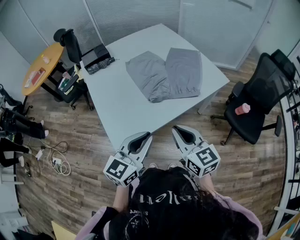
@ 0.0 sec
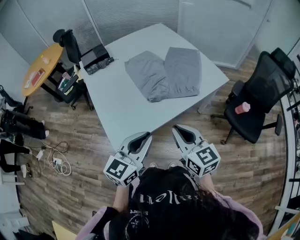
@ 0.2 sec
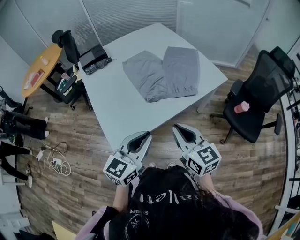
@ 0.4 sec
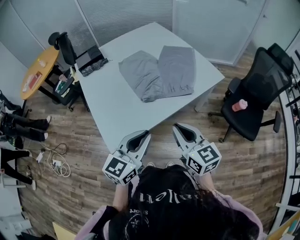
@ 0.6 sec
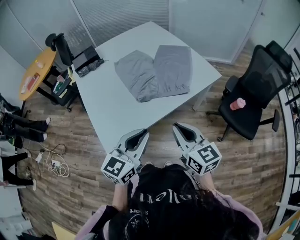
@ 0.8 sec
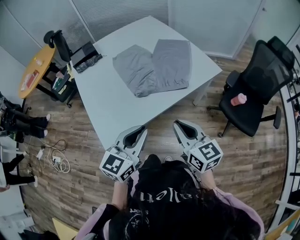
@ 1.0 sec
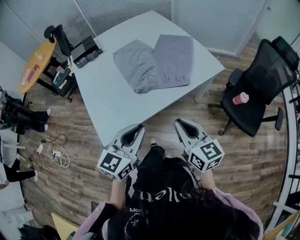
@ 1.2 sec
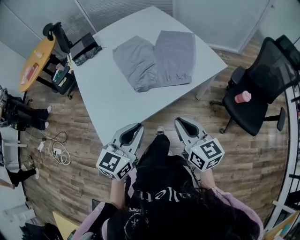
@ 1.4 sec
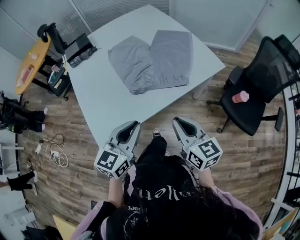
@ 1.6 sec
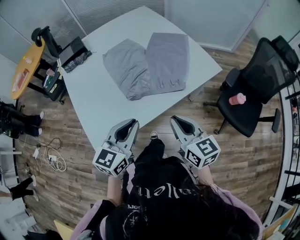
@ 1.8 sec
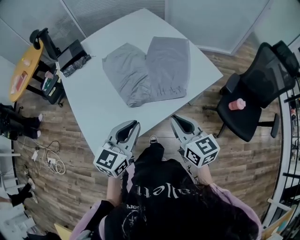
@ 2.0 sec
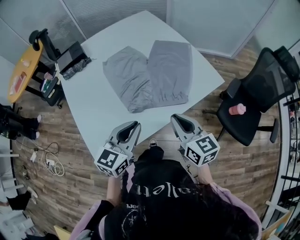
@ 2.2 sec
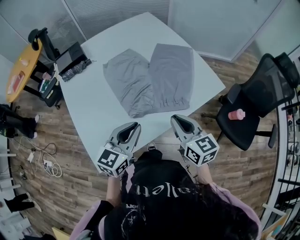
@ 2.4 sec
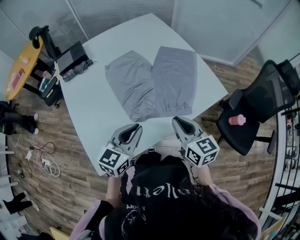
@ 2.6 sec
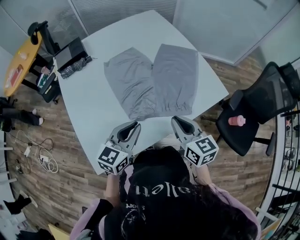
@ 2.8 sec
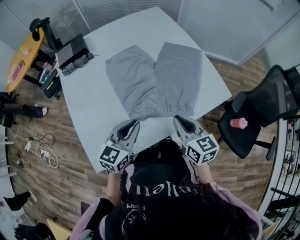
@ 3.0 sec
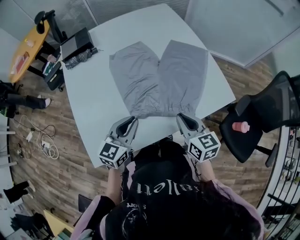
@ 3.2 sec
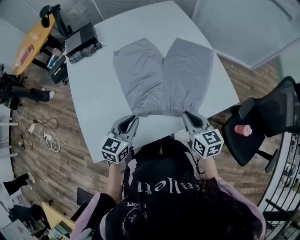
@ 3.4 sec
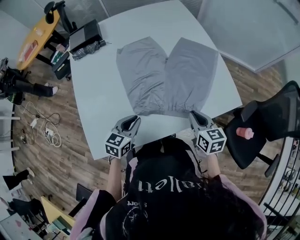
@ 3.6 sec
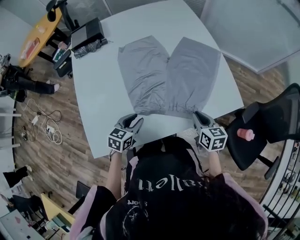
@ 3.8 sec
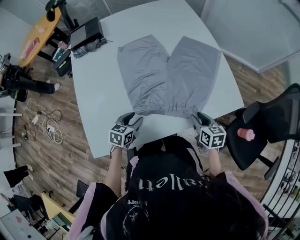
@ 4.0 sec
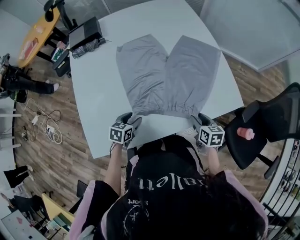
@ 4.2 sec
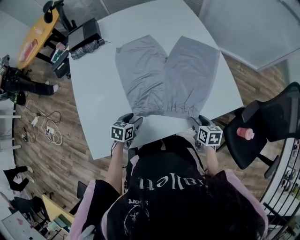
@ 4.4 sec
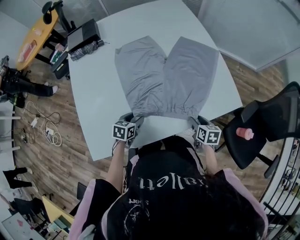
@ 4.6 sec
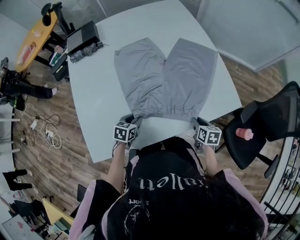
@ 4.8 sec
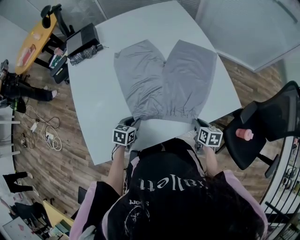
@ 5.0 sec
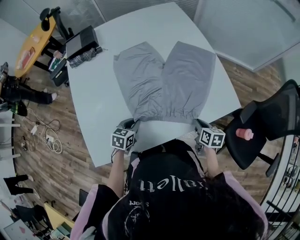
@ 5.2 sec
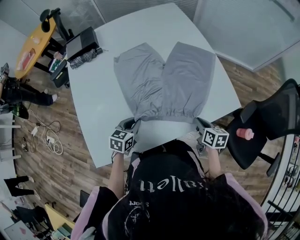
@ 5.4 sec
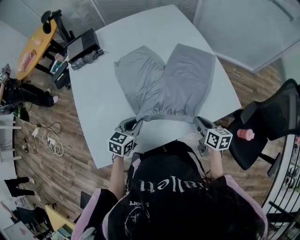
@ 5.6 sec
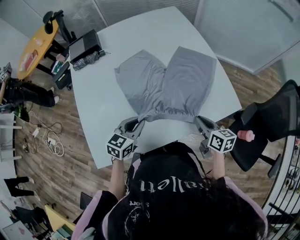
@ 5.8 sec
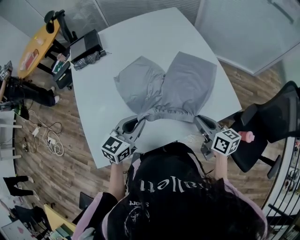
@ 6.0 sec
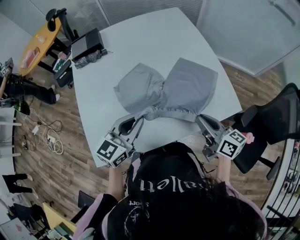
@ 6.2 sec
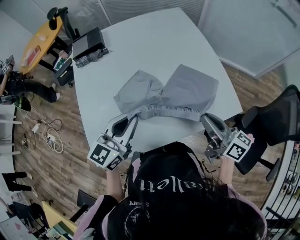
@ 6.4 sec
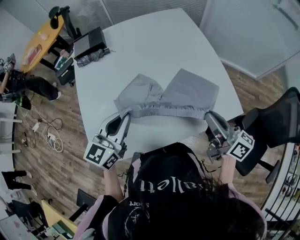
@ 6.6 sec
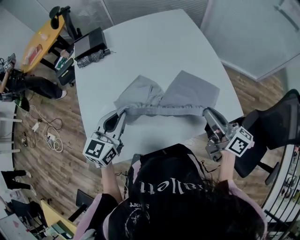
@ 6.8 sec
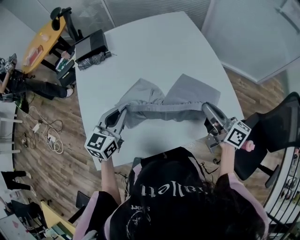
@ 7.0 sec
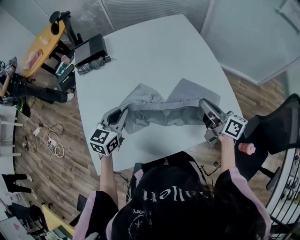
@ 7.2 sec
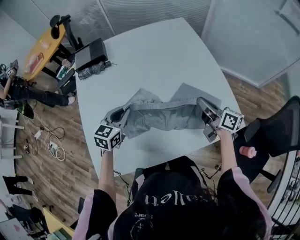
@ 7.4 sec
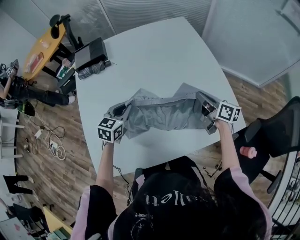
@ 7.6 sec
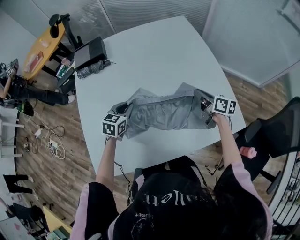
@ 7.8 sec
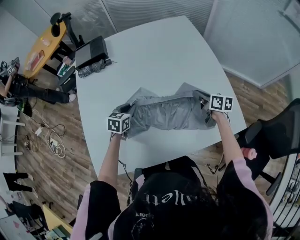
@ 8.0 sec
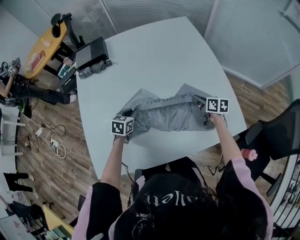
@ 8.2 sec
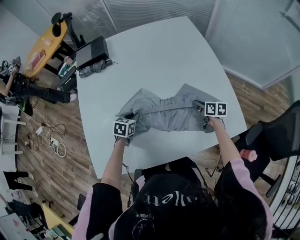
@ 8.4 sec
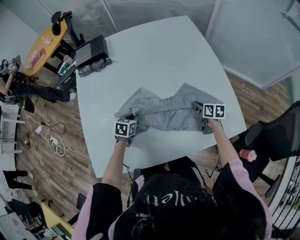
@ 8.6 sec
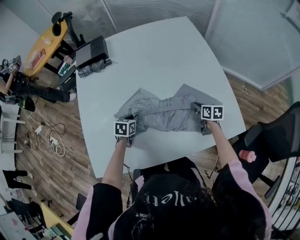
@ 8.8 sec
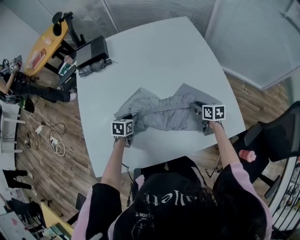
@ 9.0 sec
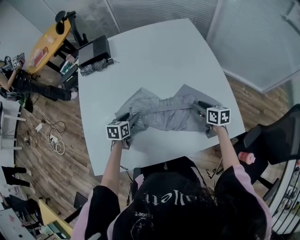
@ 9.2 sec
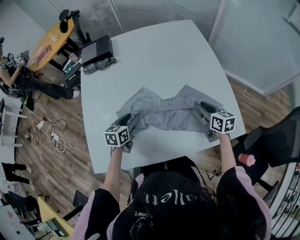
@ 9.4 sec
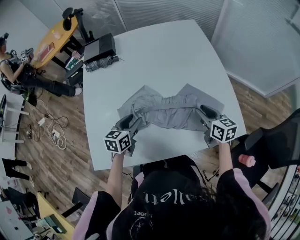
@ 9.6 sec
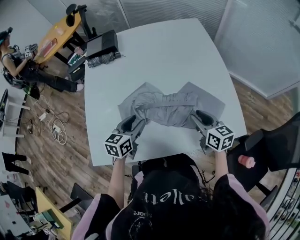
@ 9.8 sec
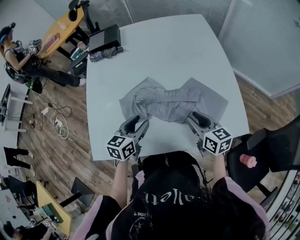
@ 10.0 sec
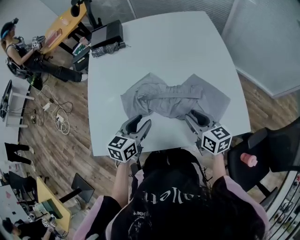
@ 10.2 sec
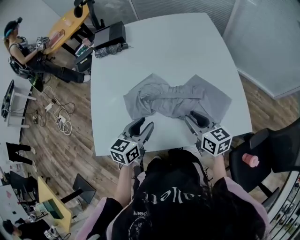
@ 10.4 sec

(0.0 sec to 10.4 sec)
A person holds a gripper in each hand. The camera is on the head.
0.0 sec - 1.4 sec: The left gripper shifts about 5 cm to the right. Meanwhile the right gripper travels to the right by some 10 cm.
1.4 sec - 3.0 sec: The grippers both shift forward by approximately 20 cm.
3.0 sec - 4.4 sec: The right gripper travels downward and to the right by roughly 25 cm, rotates approximately 30 degrees, and opens up. The left gripper is displaced downward by approximately 20 cm, points its fingers roughly 30 degrees further downward, and opens.
4.4 sec - 6.0 sec: The grippers both shift upward by about 20 cm. The left gripper tilts its fingers about 30 degrees upward, and closes. The right gripper rotates roughly 30 degrees, and closes up.
6.0 sec - 7.4 sec: The right gripper heads forward, covering roughly 15 cm. The left gripper is displaced forward and to the left by some 15 cm.
7.4 sec - 9.0 sec: The grippers both shift downward by approximately 20 cm. The left gripper rotates some 30 degrees. Meanwhile the right gripper tips its fingers downward by approximately 40 degrees, and opens its fingers.
9.0 sec - 10.4 sec: The left gripper heads upward and backward, covering approximately 20 cm, changes its angle by approximately 30 degrees, and opens up; the right gripper heads upward, backward and to the left, covering roughly 20 cm, and changes its angle by roughly 30 degrees.

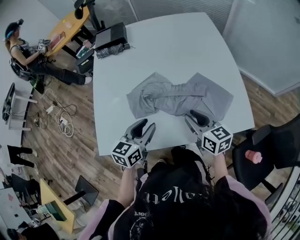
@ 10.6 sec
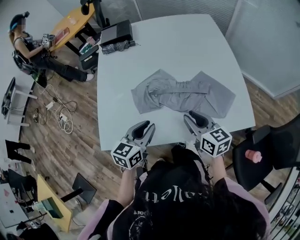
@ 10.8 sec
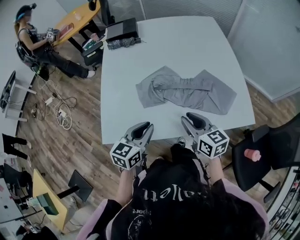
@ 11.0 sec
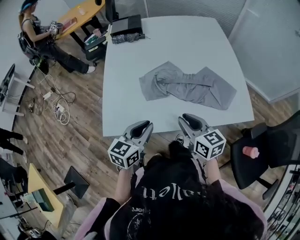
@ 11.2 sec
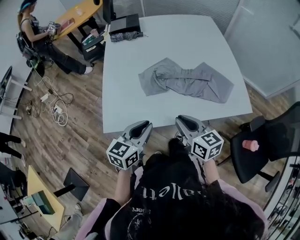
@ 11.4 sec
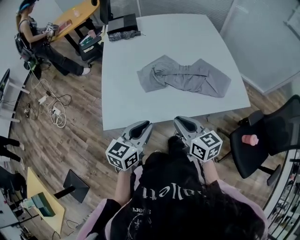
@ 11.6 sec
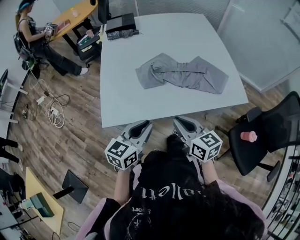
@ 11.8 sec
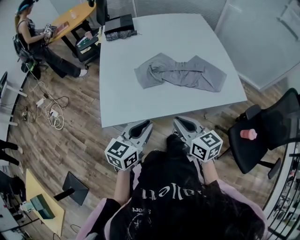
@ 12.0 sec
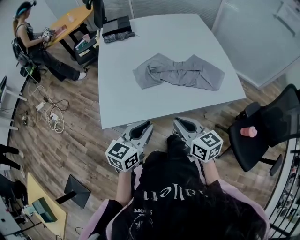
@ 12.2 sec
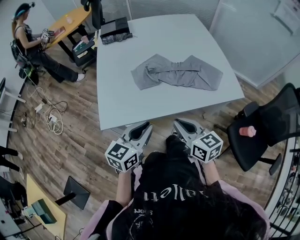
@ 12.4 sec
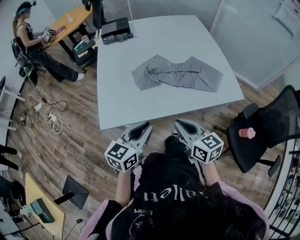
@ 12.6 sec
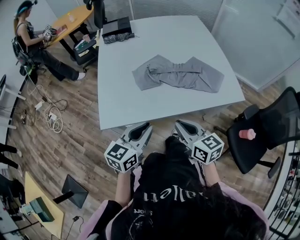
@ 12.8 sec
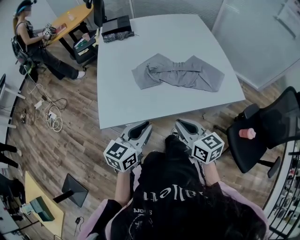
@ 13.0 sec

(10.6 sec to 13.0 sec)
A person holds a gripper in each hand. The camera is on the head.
10.6 sec - 11.8 sec: Both grippers travel together backward and to the left, about 20 cm. The right gripper closes up, while the left gripper closes up.
11.8 sec - 13.0 sec: There are only small adjustments of the grippers.

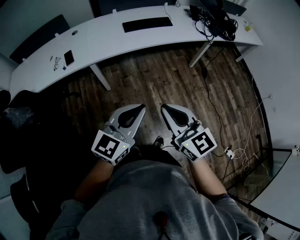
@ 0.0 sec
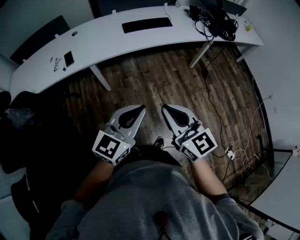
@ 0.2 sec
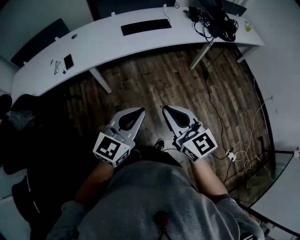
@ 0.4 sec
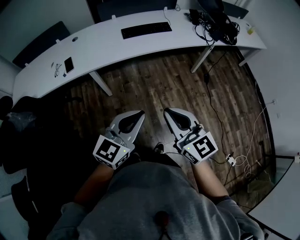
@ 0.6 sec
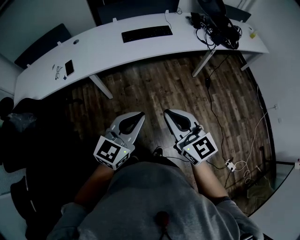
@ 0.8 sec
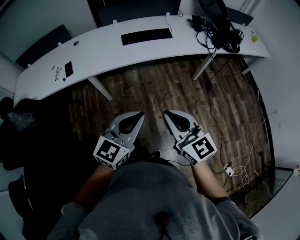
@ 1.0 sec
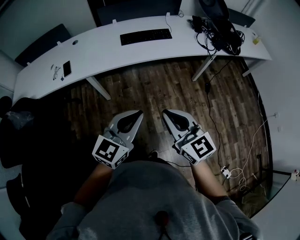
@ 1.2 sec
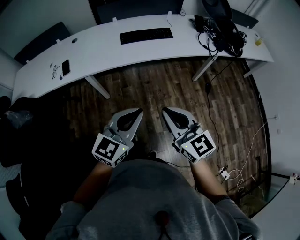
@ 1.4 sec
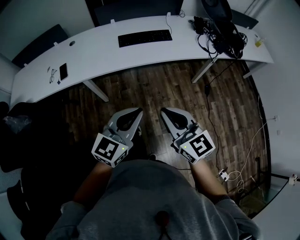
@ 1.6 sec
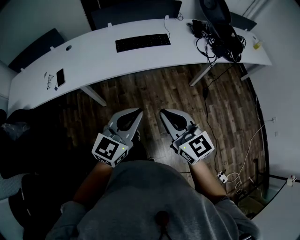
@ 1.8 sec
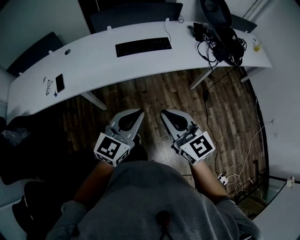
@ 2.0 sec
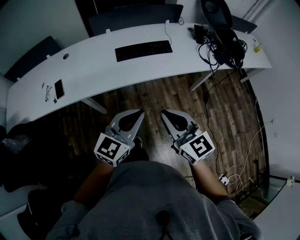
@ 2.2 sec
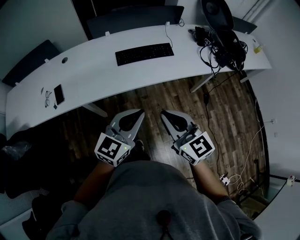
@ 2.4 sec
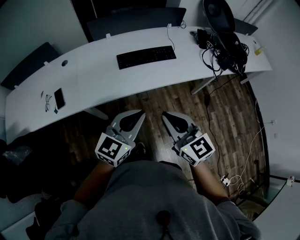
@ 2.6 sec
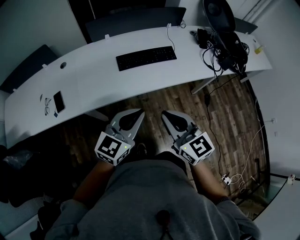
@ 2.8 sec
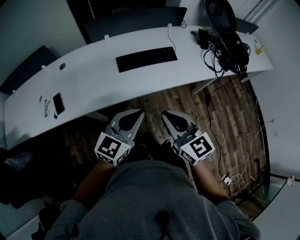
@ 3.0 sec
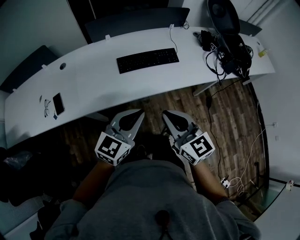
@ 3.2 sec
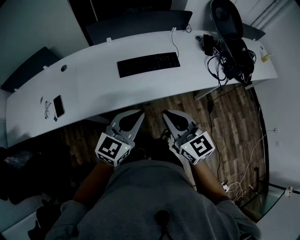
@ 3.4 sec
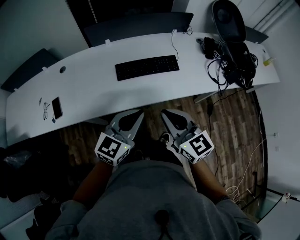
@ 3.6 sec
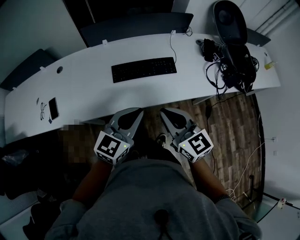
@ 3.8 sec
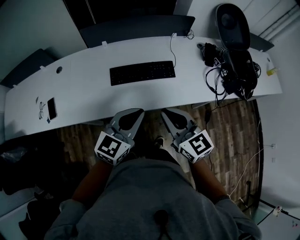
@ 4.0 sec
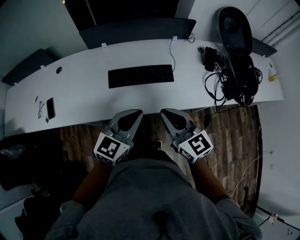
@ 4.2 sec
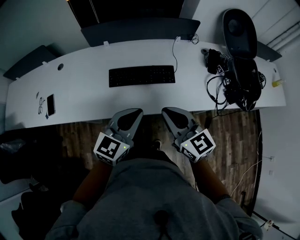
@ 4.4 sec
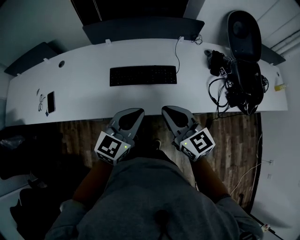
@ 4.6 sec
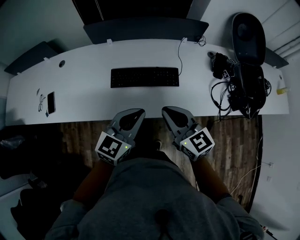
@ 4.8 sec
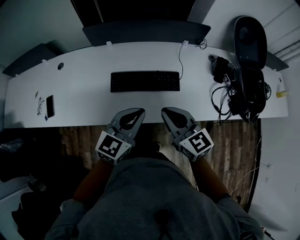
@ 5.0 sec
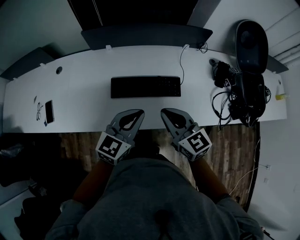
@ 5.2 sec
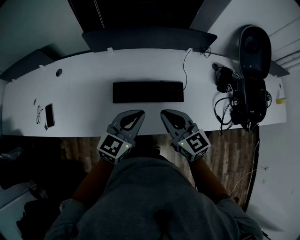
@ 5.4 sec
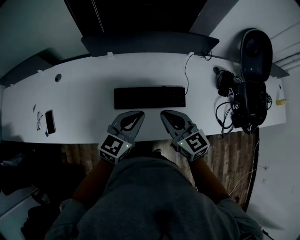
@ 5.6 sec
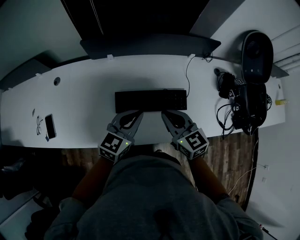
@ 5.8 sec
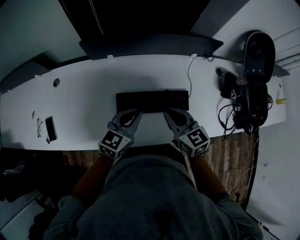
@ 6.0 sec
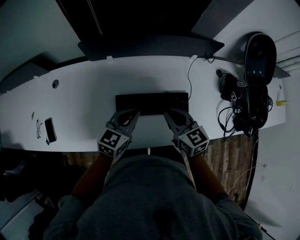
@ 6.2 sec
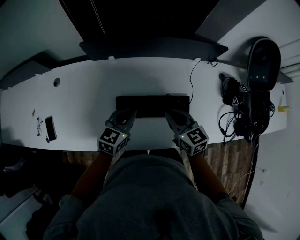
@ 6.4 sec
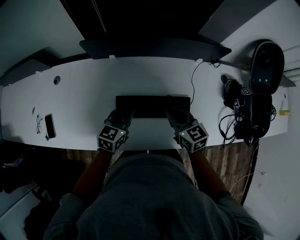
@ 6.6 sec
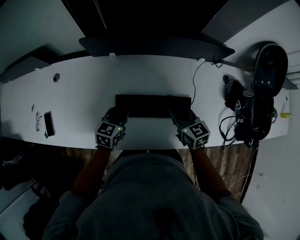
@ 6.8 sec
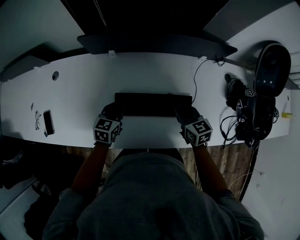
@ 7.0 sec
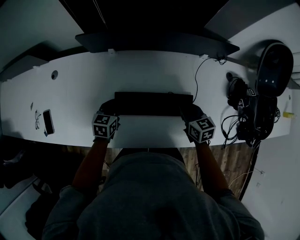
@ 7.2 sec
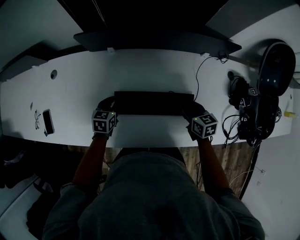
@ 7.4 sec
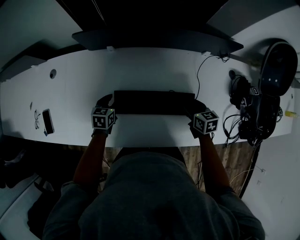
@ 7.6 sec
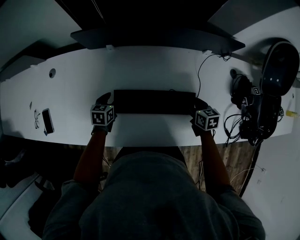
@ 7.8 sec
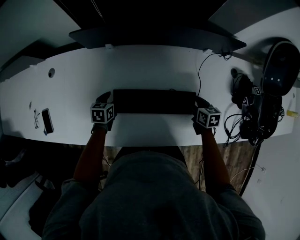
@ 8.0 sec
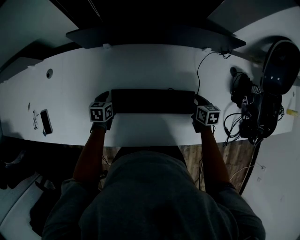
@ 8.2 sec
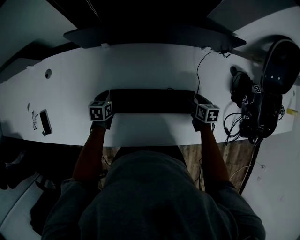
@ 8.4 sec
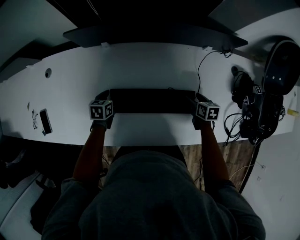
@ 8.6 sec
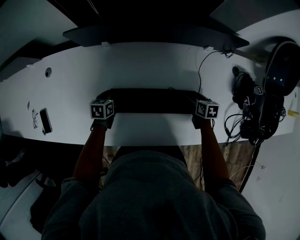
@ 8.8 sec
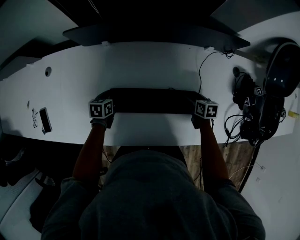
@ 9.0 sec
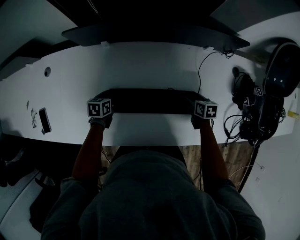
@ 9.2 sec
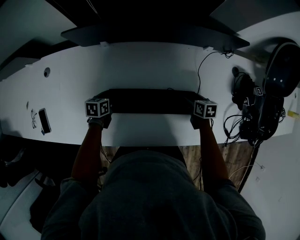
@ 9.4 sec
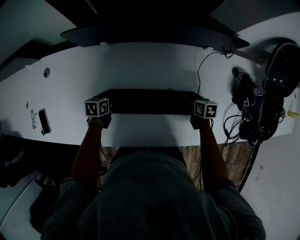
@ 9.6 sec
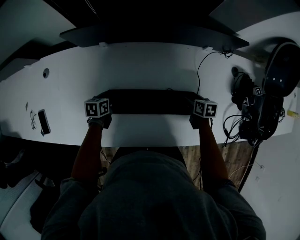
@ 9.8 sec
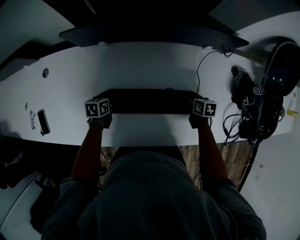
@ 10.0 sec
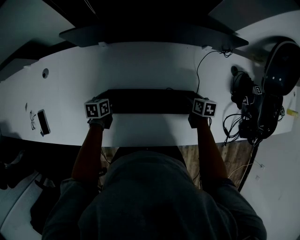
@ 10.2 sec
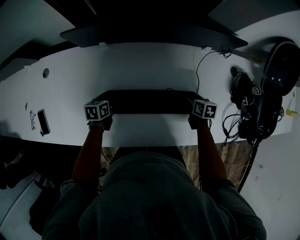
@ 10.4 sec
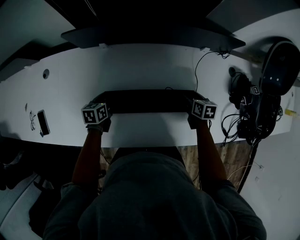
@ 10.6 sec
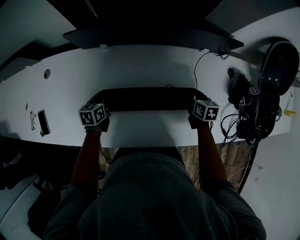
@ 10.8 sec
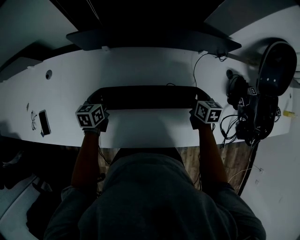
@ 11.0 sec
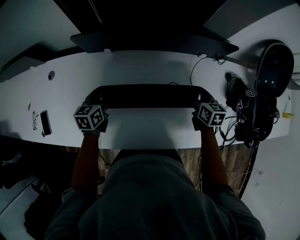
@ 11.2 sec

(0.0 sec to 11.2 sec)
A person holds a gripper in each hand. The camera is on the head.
0.0 sec - 1.6 sec: The grippers both shift forward and to the right by roughly 20 cm.
1.6 sec - 3.2 sec: The two grippers go approximately 25 cm forward.
3.2 sec - 4.8 sec: The two grippers go approximately 25 cm forward and to the right.
4.8 sec - 6.4 sec: The right gripper is displaced forward and downward by some 25 cm, while the left gripper moves forward, downward and to the left, about 25 cm.
6.4 sec - 8.0 sec: The right gripper moves downward and to the right, approximately 25 cm, swivels roughly 30 degrees, and opens up, while the left gripper is displaced downward and to the left by some 25 cm, swivels about 30 degrees, and opens up.
8.0 sec - 9.6 sec: The right gripper moves downward, approximately 5 cm.
9.6 sec - 11.2 sec: The grippers both shift upward by some 15 cm. The left gripper changes its angle by some 20 degrees. The right gripper swivels some 20 degrees.
